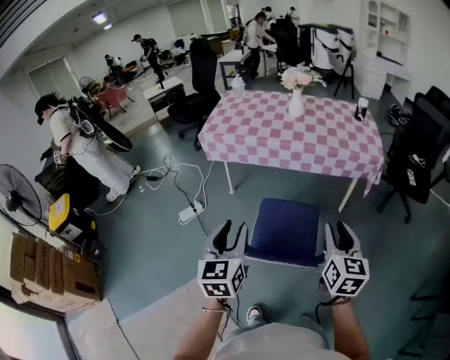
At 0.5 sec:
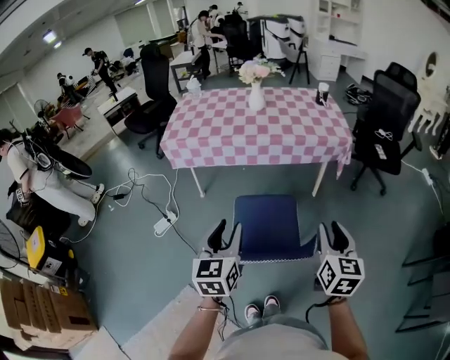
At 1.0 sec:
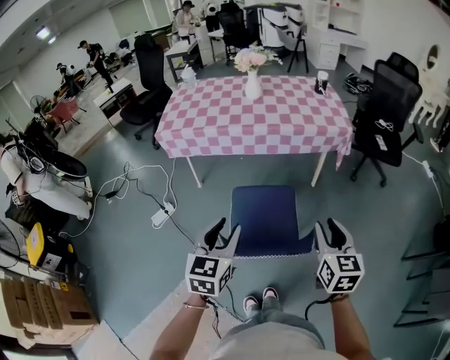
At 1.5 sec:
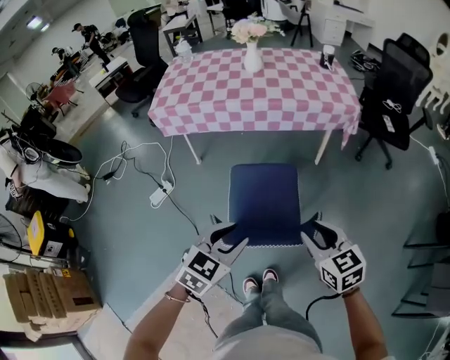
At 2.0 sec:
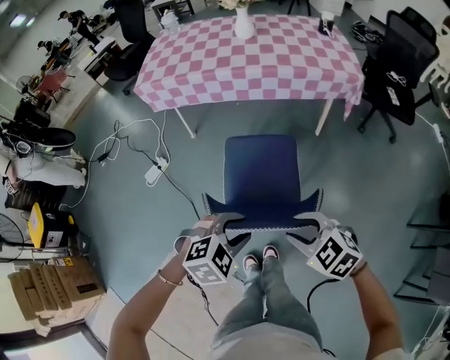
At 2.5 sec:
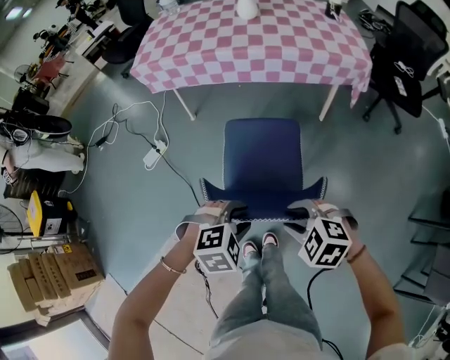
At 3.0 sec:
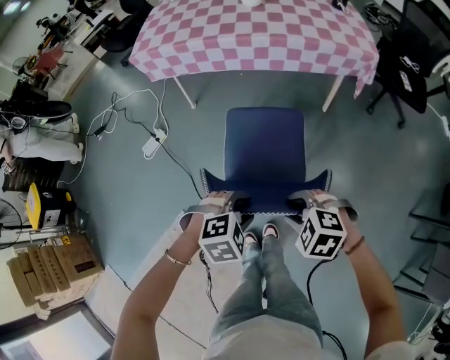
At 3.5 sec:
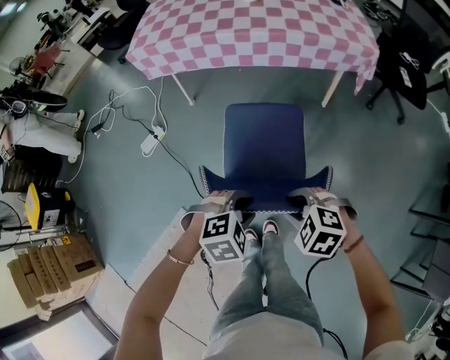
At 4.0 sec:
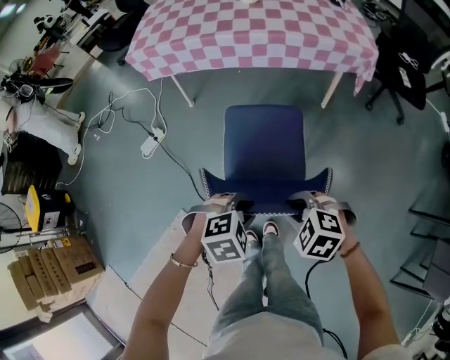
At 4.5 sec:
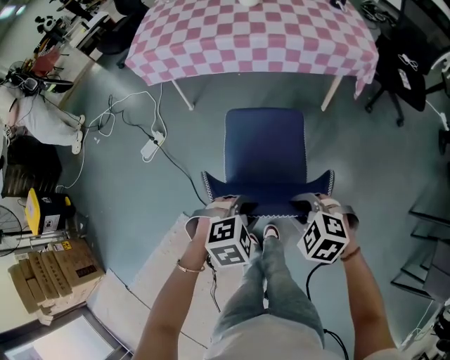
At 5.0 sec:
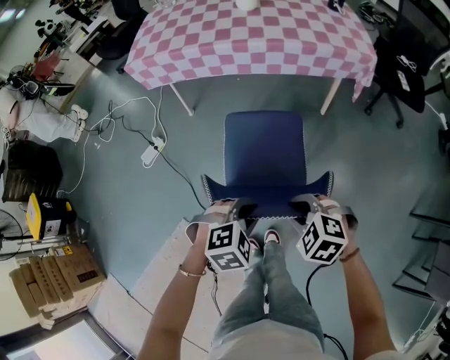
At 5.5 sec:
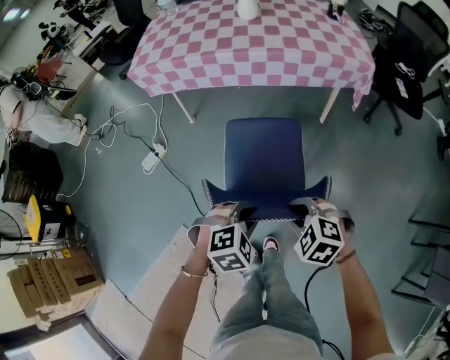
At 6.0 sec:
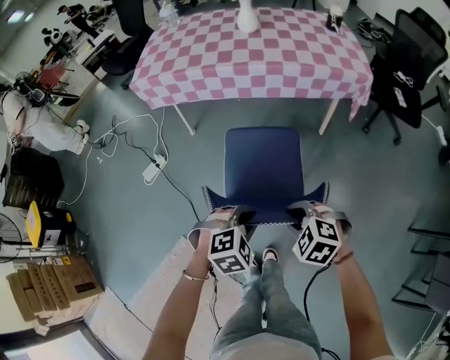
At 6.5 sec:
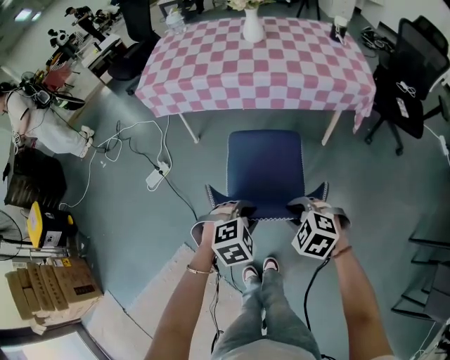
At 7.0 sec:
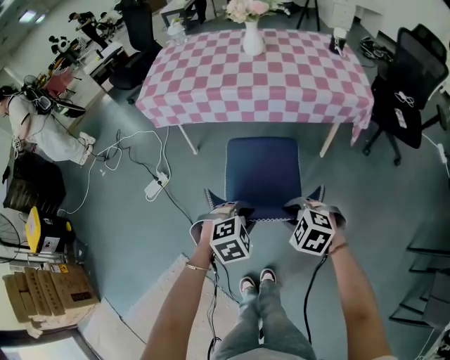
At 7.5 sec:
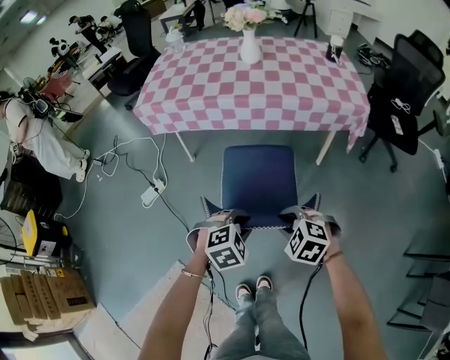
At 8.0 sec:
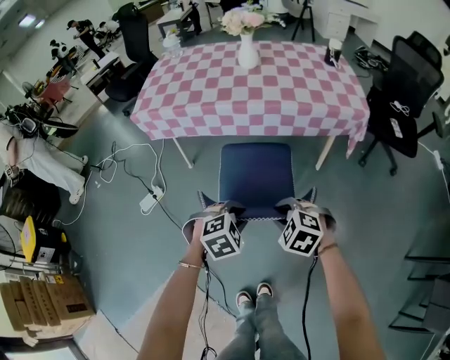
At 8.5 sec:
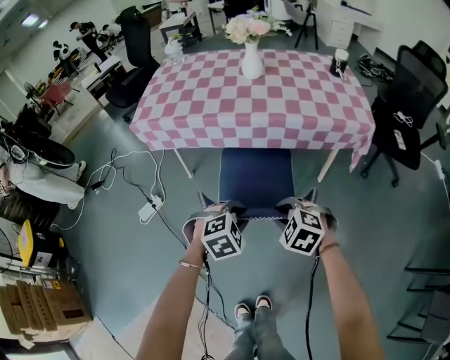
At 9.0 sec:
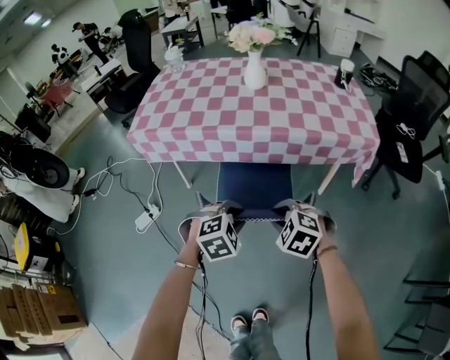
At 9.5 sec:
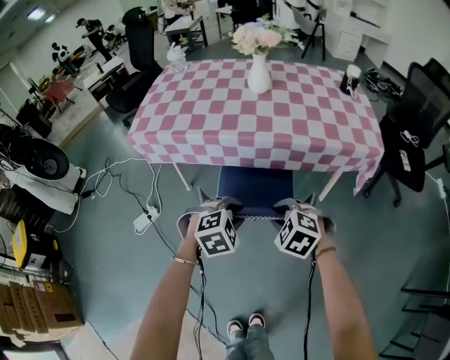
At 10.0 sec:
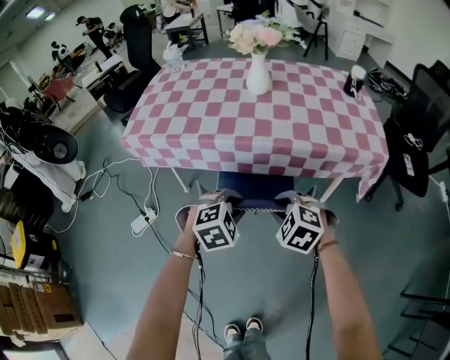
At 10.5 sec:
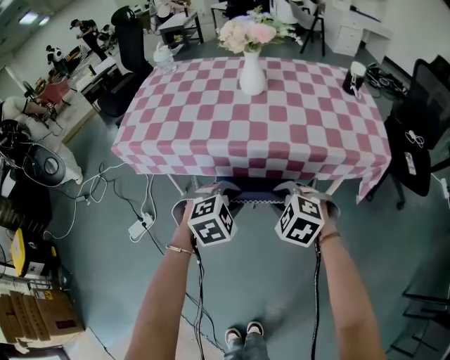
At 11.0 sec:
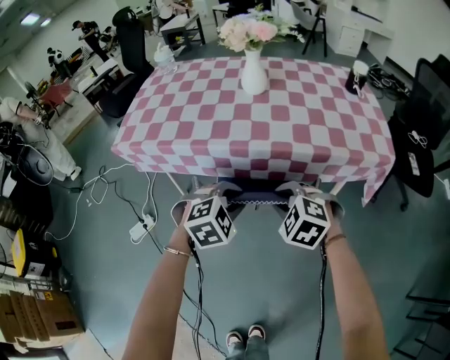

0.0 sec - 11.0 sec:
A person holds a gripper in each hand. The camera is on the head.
0.0 sec - 2.0 sec: The left gripper travels downward and to the right by approximately 20 cm, and angles its fingers downward, by approximately 40 degrees. Meanwhile the right gripper moves downward and backward, approximately 20 cm, and tips its fingers downward by approximately 40 degrees.
2.0 sec - 3.5 sec: Both grippers move downward, approximately 10 cm. The right gripper changes its angle by about 20 degrees.
3.5 sec - 5.5 sec: The grippers make only small movements.
5.5 sec - 7.5 sec: The two grippers go some 10 cm forward.
7.5 sec - 9.0 sec: Both grippers travel together forward, roughly 20 cm.
9.0 sec - 11.0 sec: The grippers both shift forward by roughly 15 cm.

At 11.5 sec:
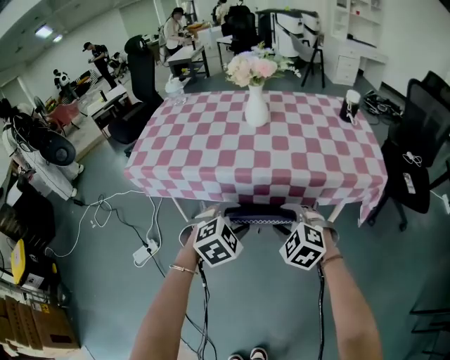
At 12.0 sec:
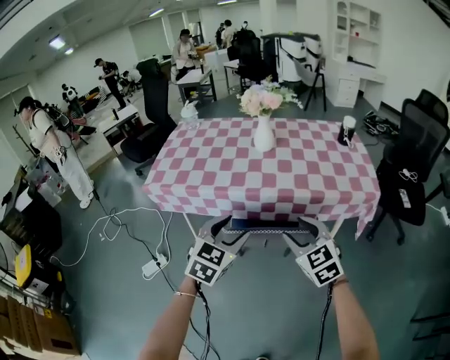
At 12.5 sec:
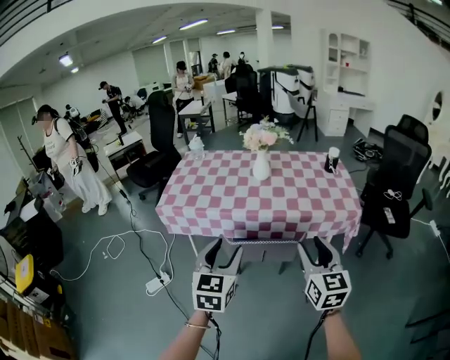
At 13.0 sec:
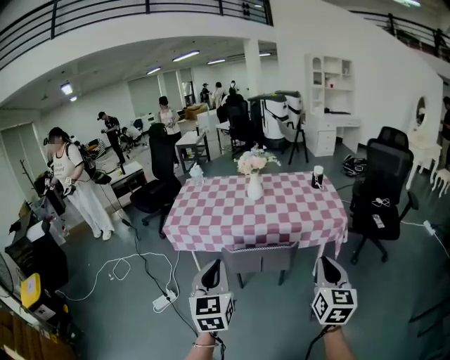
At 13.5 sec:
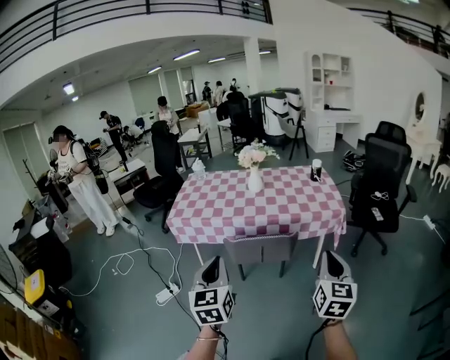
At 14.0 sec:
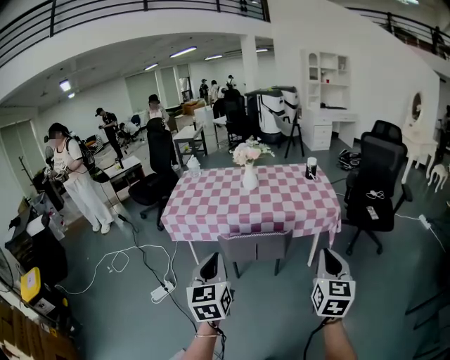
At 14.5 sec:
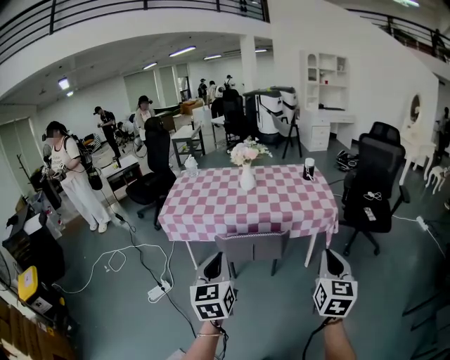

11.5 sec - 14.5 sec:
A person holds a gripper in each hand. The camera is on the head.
11.5 sec - 13.0 sec: Both grippers move upward and backward, about 40 cm. The right gripper tips its fingers upward by approximately 40 degrees, and closes its fingers. Meanwhile the left gripper angles its fingers upward, by some 50 degrees, and closes.
13.0 sec - 14.5 sec: The right gripper moves some 5 cm.

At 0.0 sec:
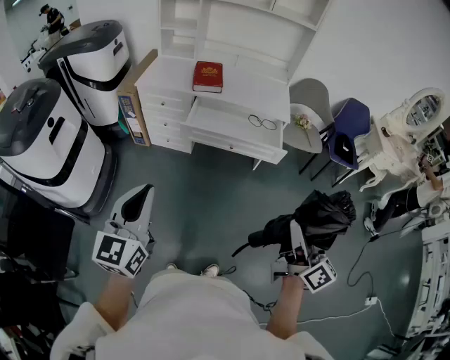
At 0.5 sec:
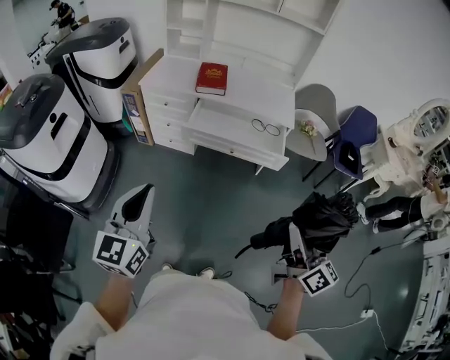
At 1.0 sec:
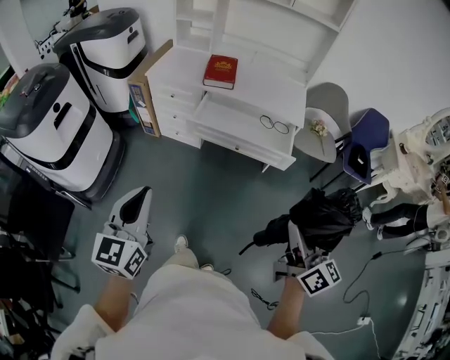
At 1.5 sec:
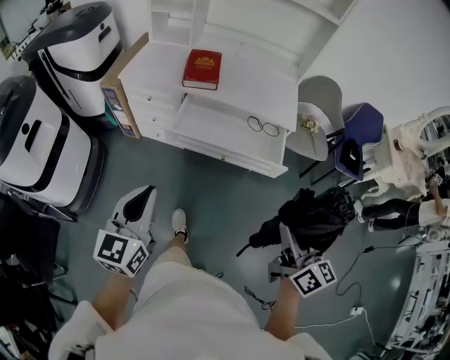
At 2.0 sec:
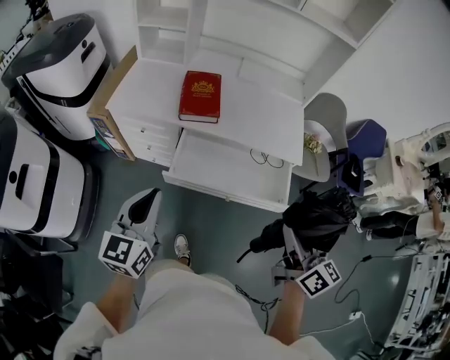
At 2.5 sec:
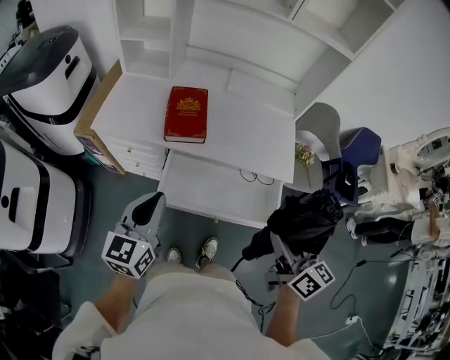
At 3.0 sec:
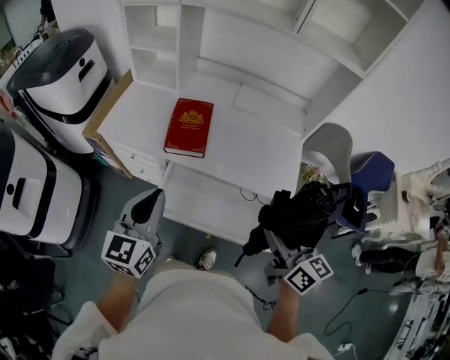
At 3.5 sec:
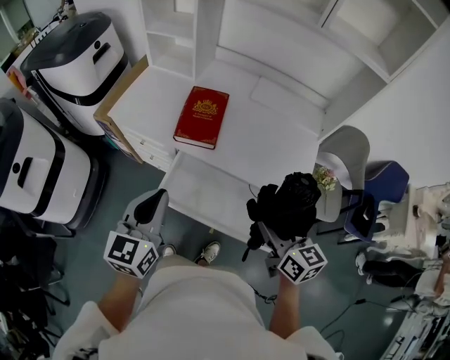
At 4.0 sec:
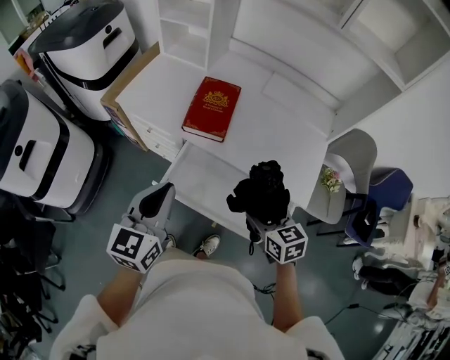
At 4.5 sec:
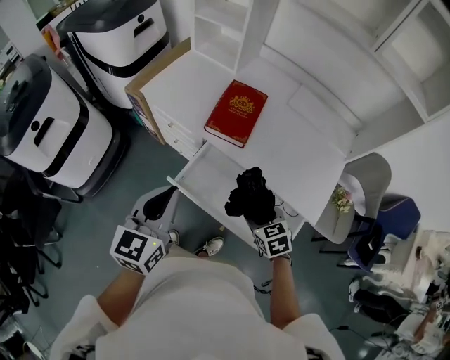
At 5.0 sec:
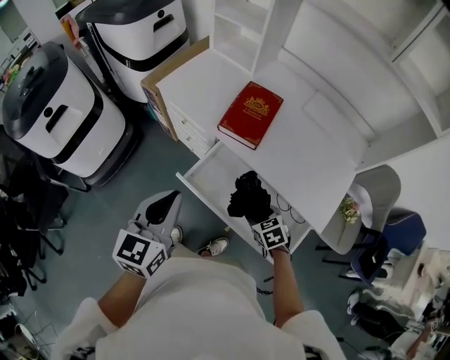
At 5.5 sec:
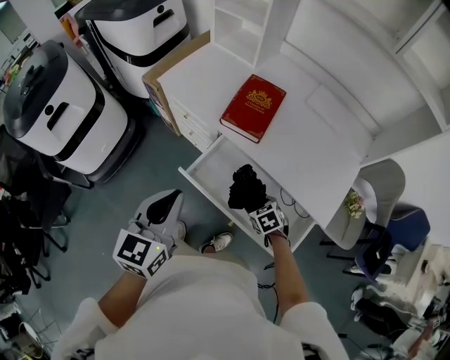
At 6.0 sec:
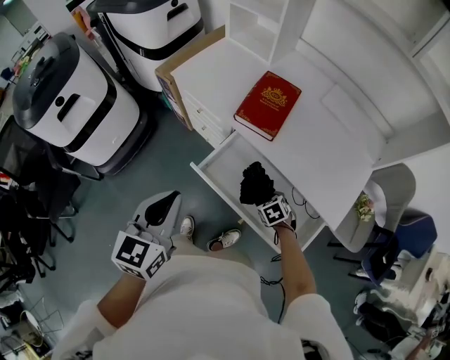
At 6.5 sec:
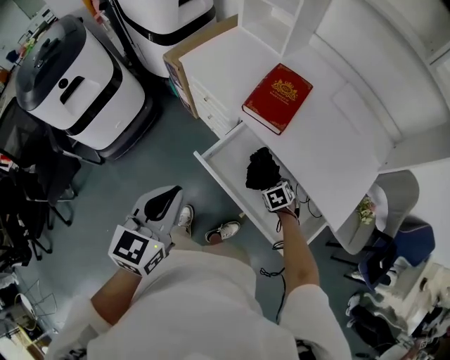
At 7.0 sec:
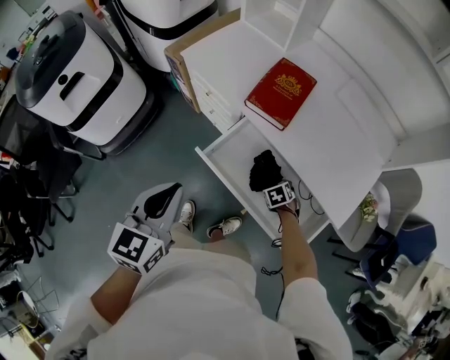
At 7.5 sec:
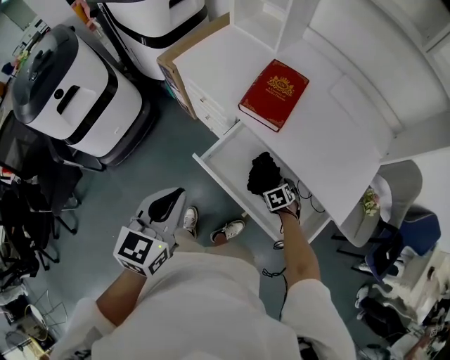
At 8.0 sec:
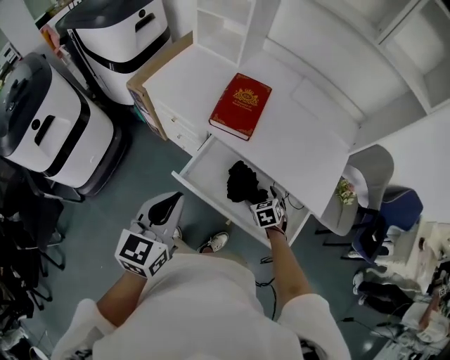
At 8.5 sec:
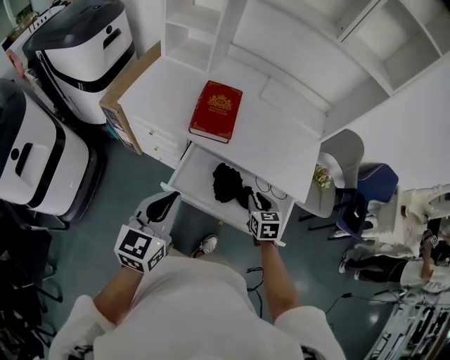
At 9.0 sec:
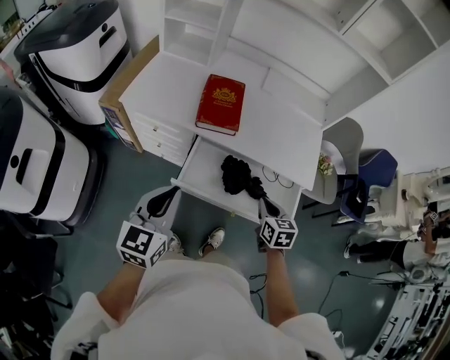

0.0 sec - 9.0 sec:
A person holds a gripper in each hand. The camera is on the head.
0.0 sec - 2.0 sec: Both grippers move forward, some 35 cm.
2.0 sec - 4.5 sec: The right gripper is displaced downward by some 25 cm, and angles its fingers downward, by some 40 degrees; the left gripper ends up approximately 15 cm from where it was.
4.5 sec - 7.0 sec: The right gripper moves downward, about 20 cm, and changes its angle by about 30 degrees. Meanwhile the left gripper heads backward, covering approximately 5 cm.
7.0 sec - 9.0 sec: The right gripper is displaced upward by some 25 cm, tilts its fingers approximately 40 degrees upward, and closes. The left gripper shifts by approximately 5 cm, and changes its angle by about 30 degrees.

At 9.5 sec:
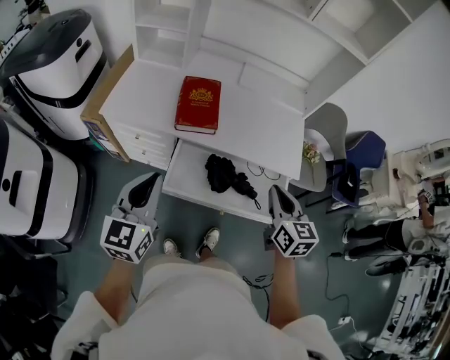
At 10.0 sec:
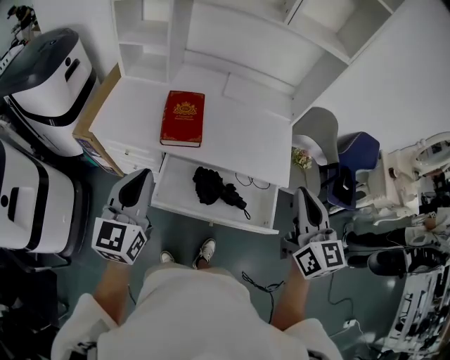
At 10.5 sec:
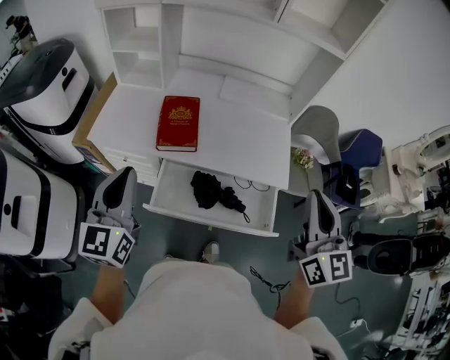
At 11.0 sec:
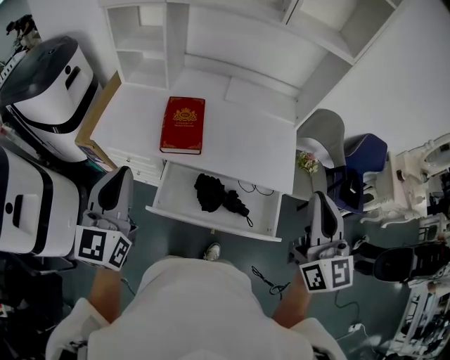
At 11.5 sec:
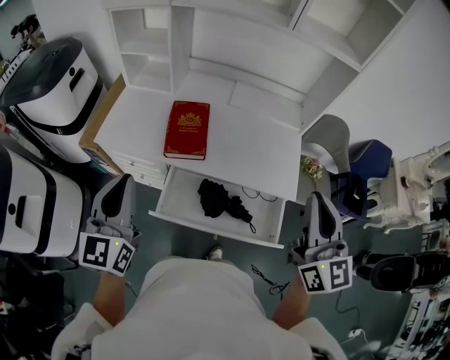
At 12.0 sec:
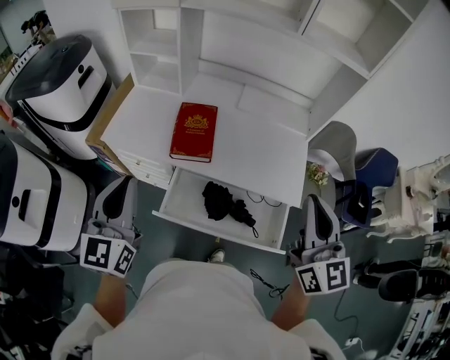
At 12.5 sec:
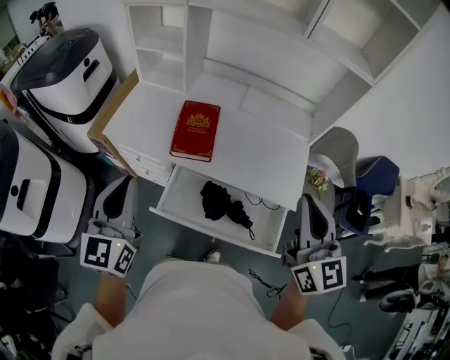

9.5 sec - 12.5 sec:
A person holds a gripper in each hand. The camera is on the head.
9.5 sec - 11.0 sec: The right gripper is displaced upward by some 20 cm, and changes its angle by some 30 degrees, while the left gripper heads upward and forward, covering roughly 10 cm.
11.0 sec - 12.5 sec: The right gripper changes place by approximately 5 cm.
